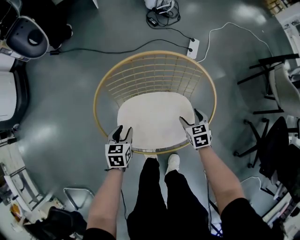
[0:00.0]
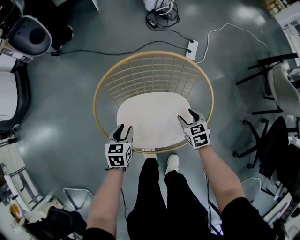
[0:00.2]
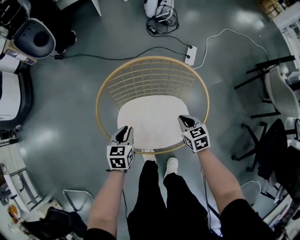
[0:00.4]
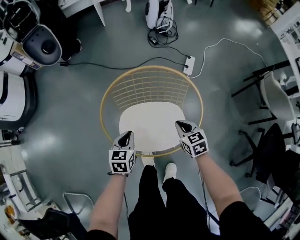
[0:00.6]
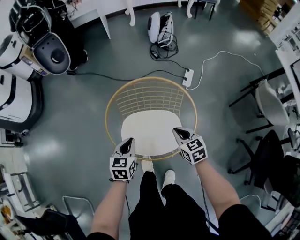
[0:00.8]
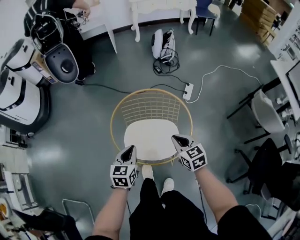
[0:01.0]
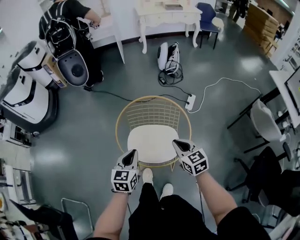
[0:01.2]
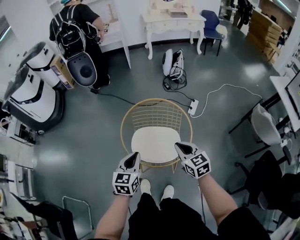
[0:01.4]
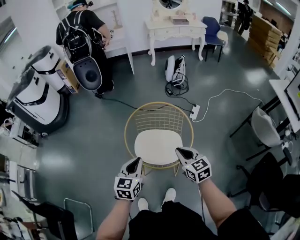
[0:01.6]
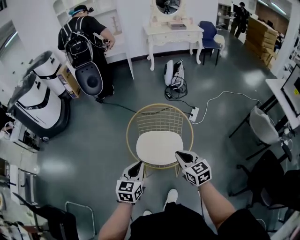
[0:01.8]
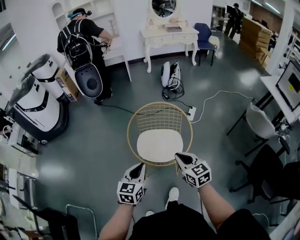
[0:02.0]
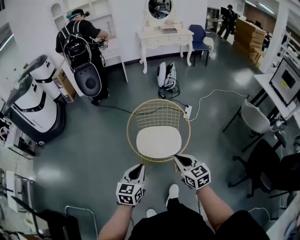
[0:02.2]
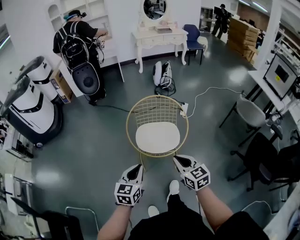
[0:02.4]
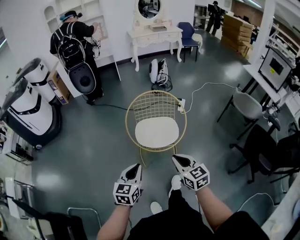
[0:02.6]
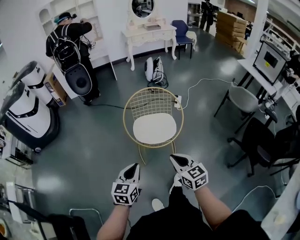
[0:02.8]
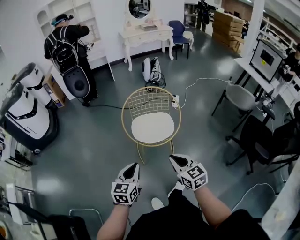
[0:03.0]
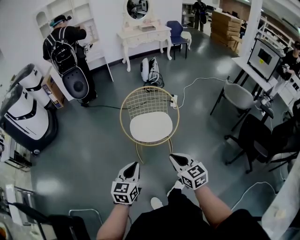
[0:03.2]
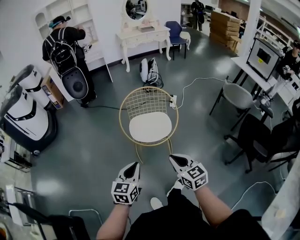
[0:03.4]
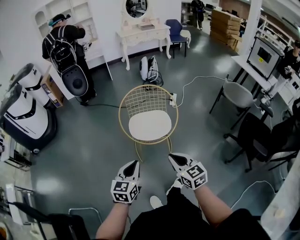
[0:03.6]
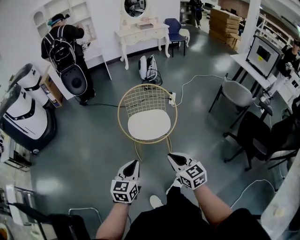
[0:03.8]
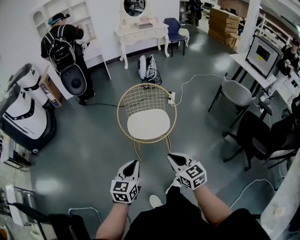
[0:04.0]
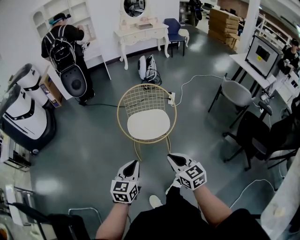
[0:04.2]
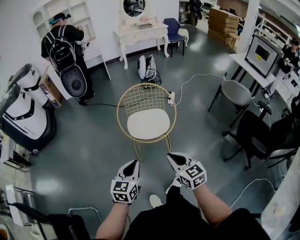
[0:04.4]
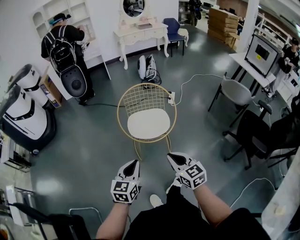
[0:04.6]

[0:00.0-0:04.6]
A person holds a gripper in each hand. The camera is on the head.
0.0 to 1.6 s: The two grippers go some 40 cm upward and backward. The right gripper rotates some 40 degrees, and closes its fingers; the left gripper changes its angle by roughly 30 degrees, and closes its fingers.
1.6 to 3.0 s: The grippers both shift backward and to the left by approximately 30 cm.
3.0 to 4.6 s: There are only small adjustments of the grippers.

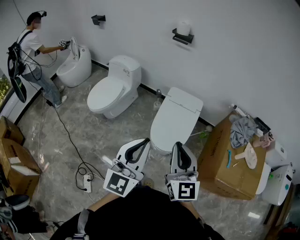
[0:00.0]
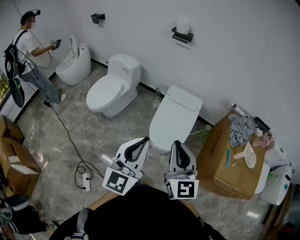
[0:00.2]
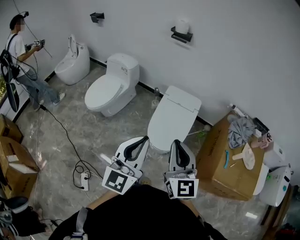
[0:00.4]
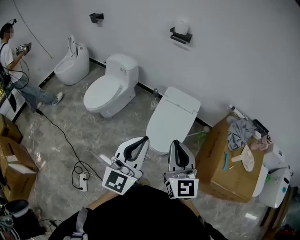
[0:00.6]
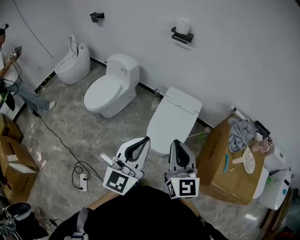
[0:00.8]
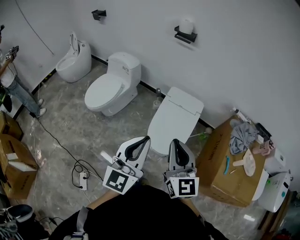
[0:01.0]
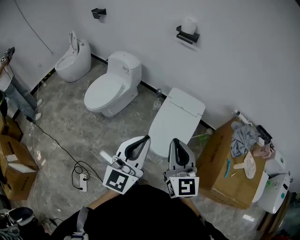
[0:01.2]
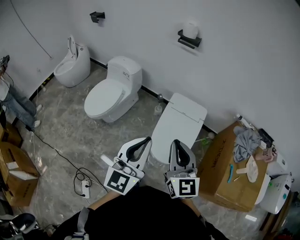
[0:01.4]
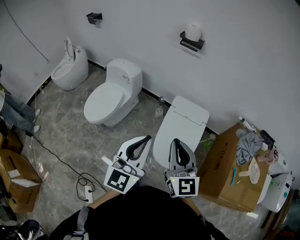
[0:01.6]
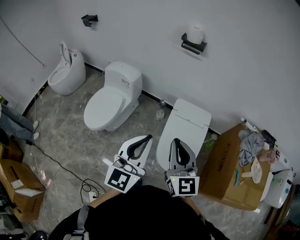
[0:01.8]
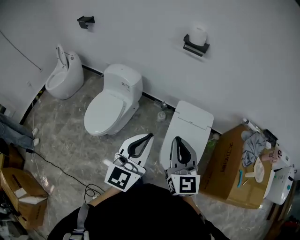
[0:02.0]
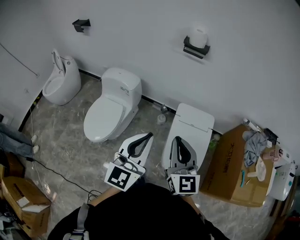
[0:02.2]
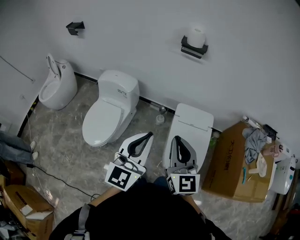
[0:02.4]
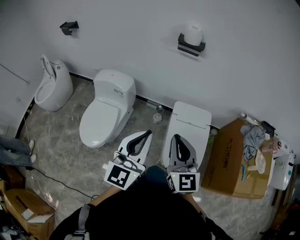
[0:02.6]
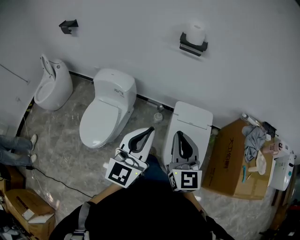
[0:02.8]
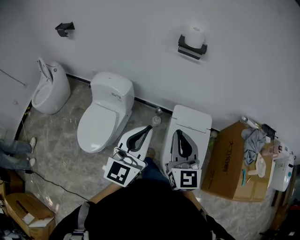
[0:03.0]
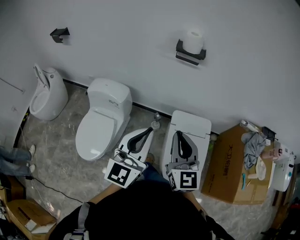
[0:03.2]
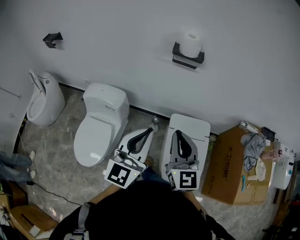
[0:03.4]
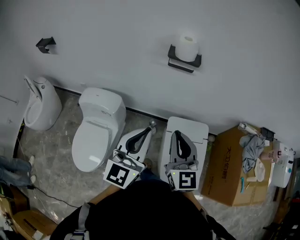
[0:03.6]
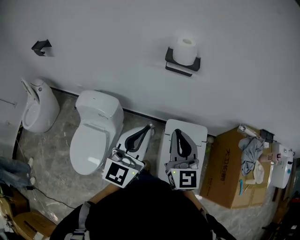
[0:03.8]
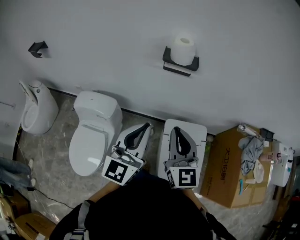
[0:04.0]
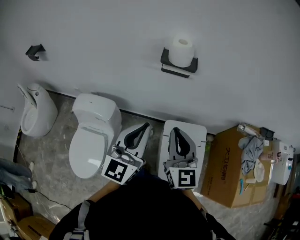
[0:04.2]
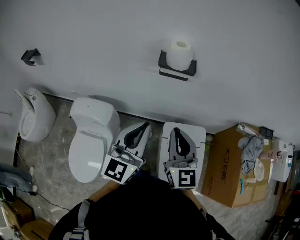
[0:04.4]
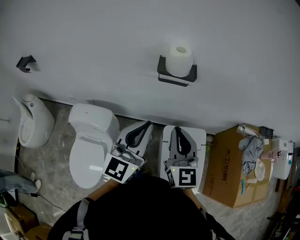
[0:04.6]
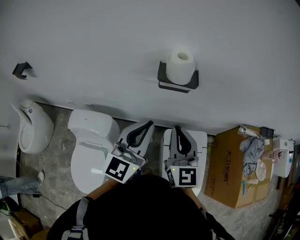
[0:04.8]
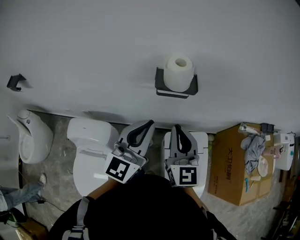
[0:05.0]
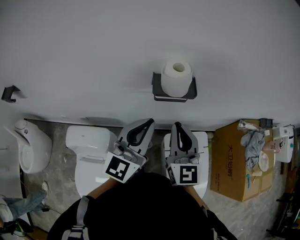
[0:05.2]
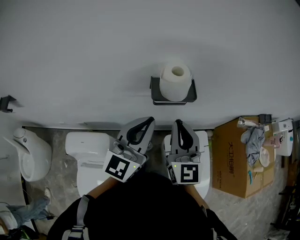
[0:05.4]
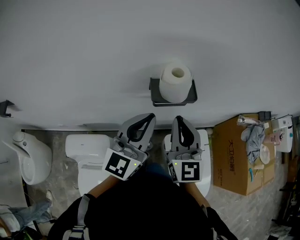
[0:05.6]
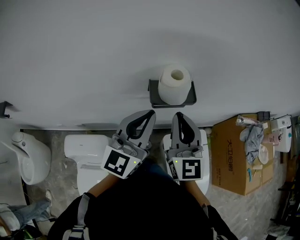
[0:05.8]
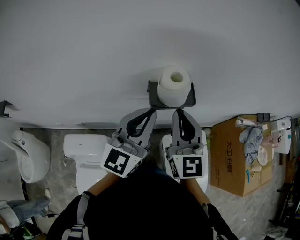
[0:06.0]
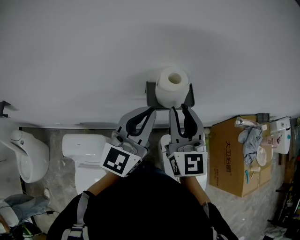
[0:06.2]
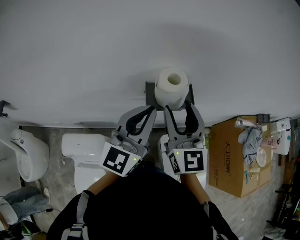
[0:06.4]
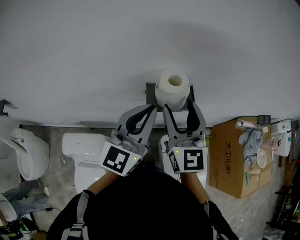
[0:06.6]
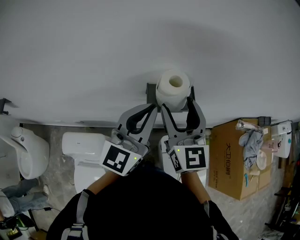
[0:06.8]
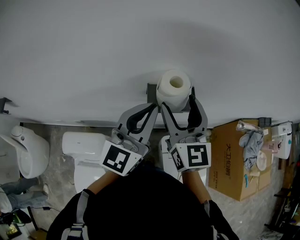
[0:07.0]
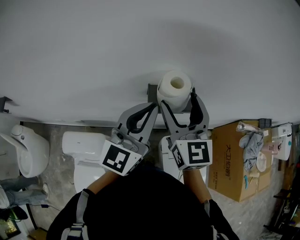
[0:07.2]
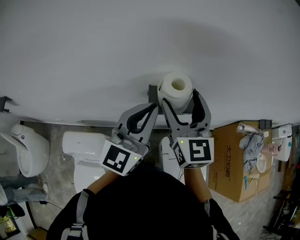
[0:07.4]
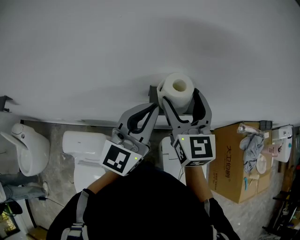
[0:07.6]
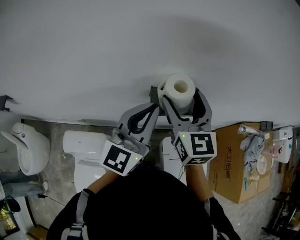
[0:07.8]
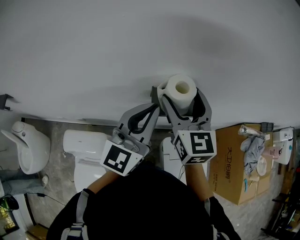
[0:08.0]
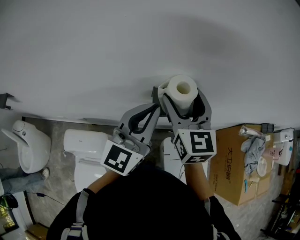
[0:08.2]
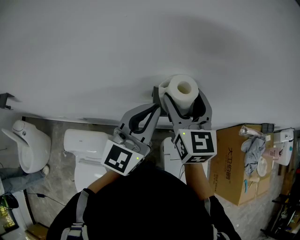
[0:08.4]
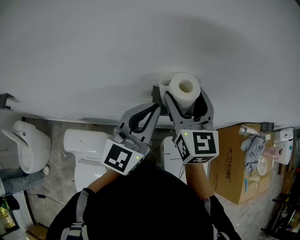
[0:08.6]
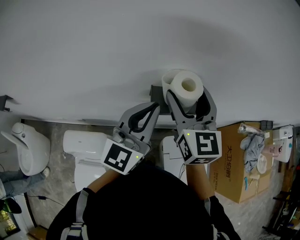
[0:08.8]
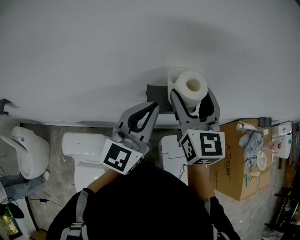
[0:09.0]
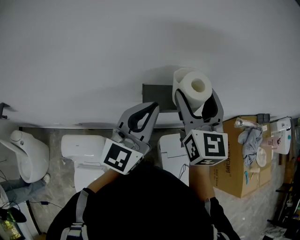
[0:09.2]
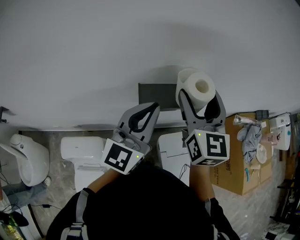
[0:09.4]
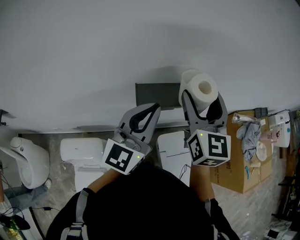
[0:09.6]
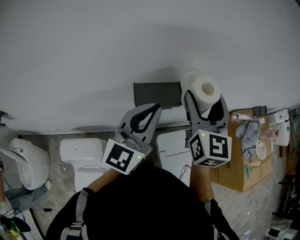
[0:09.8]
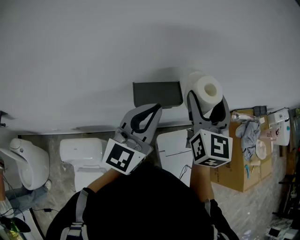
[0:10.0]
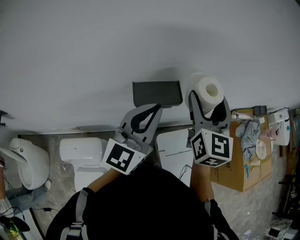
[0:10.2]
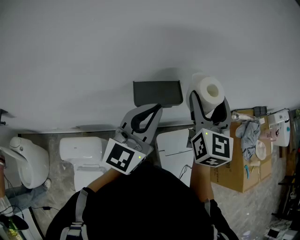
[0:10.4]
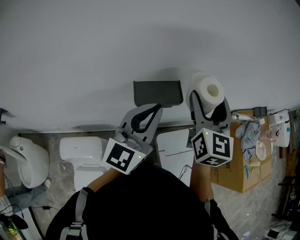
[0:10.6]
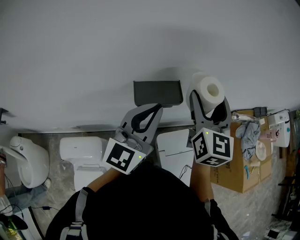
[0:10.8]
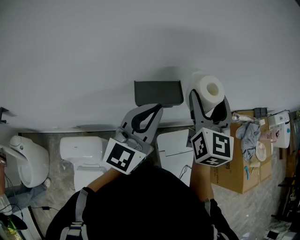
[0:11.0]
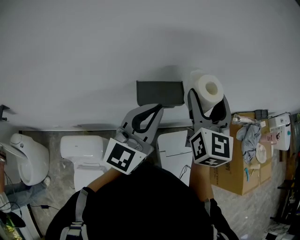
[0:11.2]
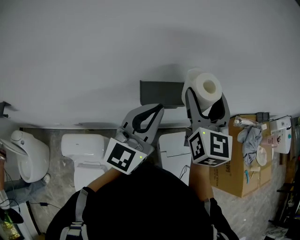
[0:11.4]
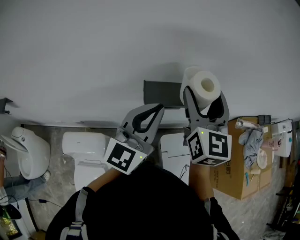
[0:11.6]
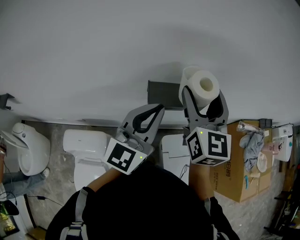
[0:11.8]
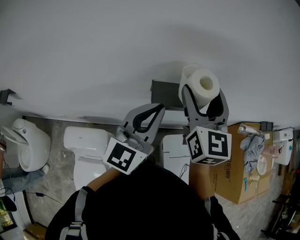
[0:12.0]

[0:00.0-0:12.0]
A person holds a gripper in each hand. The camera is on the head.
0.0 to 1.6 s: The right gripper travels forward and to the left by some 20 cm, while the left gripper heads forward, covering roughly 20 cm.
1.6 to 3.0 s: Both grippers travel together forward and to the left, roughly 25 cm.
3.0 to 4.4 s: The grippers both shift forward by some 25 cm.
4.4 to 6.0 s: The grippers both shift forward by roughly 20 cm.
6.0 to 7.6 s: The right gripper heads forward, covering some 10 cm, and opens.
7.6 to 9.0 s: The grippers make only small movements.
9.0 to 10.4 s: The right gripper is displaced to the right by roughly 10 cm; the left gripper travels to the right by about 5 cm.
10.4 to 12.0 s: The right gripper shifts about 10 cm to the left.

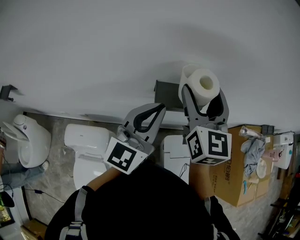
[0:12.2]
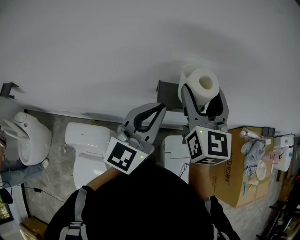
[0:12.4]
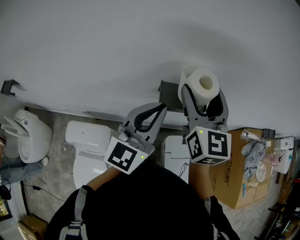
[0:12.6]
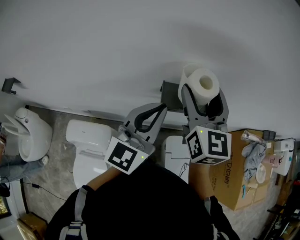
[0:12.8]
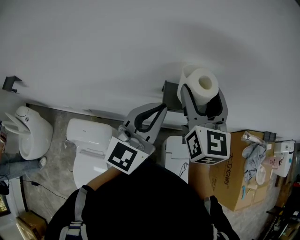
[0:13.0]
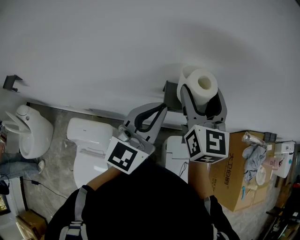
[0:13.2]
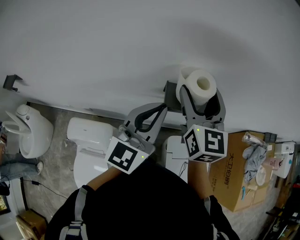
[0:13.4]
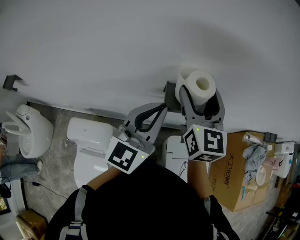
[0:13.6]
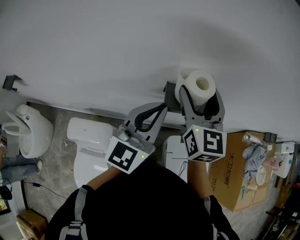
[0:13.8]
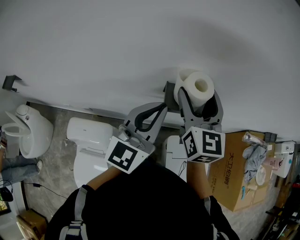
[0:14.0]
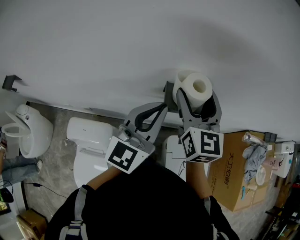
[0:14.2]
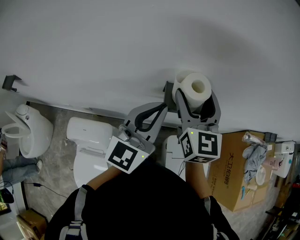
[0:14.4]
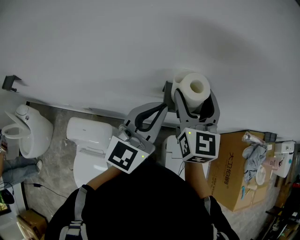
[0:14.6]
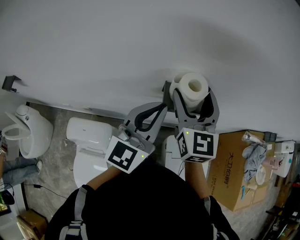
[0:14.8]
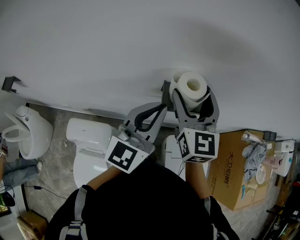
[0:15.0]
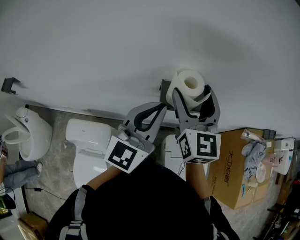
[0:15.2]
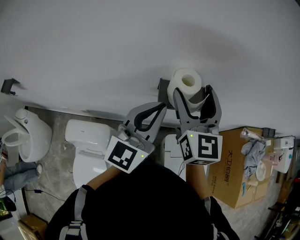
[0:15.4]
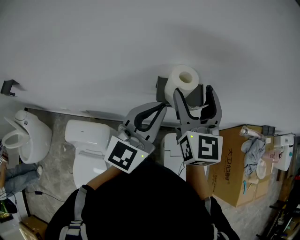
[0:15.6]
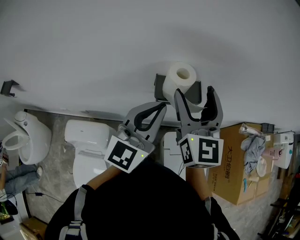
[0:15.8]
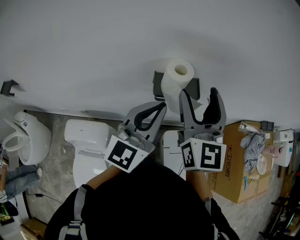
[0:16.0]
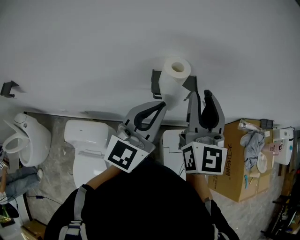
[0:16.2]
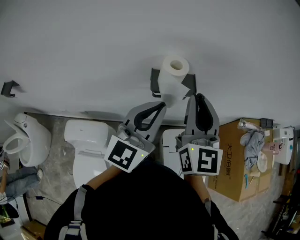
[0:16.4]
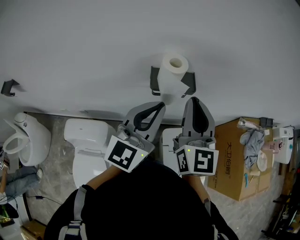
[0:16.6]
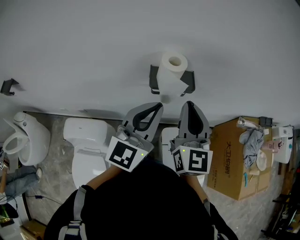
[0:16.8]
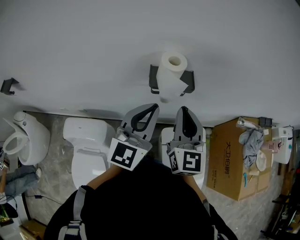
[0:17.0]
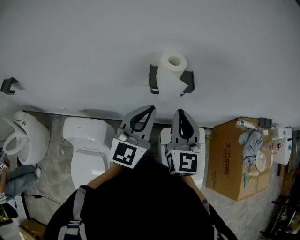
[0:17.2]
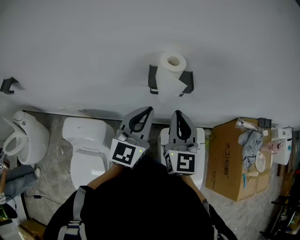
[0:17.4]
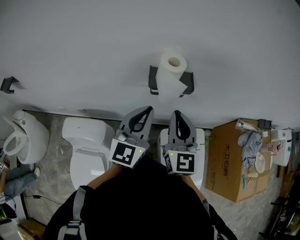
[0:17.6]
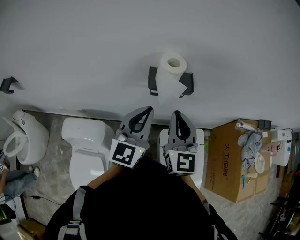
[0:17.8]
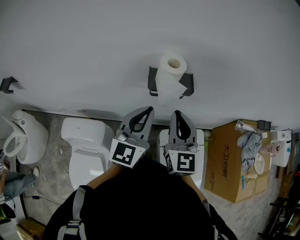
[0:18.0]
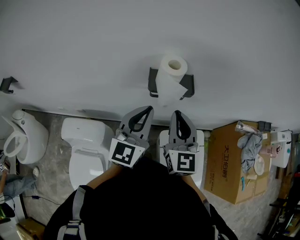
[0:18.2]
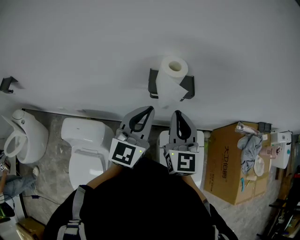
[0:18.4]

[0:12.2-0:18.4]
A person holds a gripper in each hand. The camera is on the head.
12.2 to 13.8 s: The right gripper changes place by some 5 cm.
13.8 to 15.4 s: The grippers stay close to where they were, moving slightly.
15.4 to 16.8 s: The right gripper travels backward and to the right by roughly 10 cm, and closes. Meanwhile the left gripper moves backward, approximately 5 cm.
16.8 to 18.4 s: The right gripper heads downward, covering about 5 cm; the left gripper shifts by approximately 5 cm.

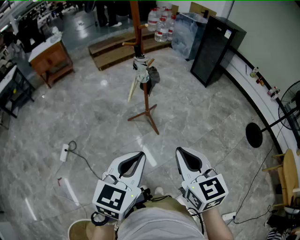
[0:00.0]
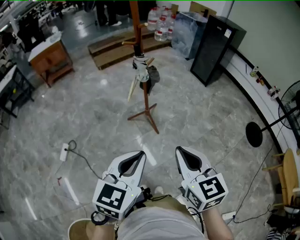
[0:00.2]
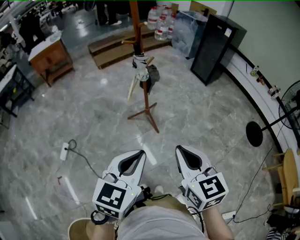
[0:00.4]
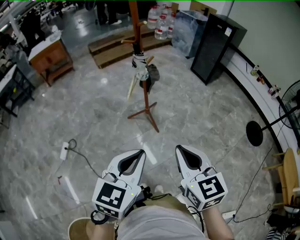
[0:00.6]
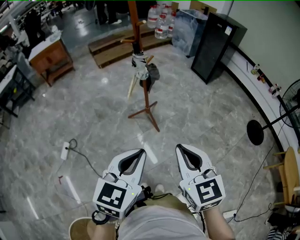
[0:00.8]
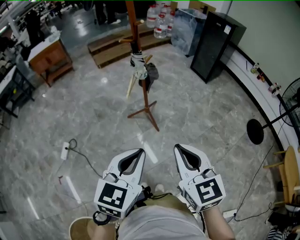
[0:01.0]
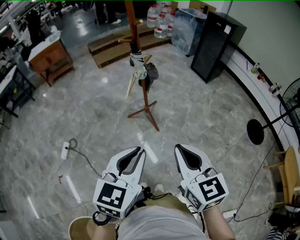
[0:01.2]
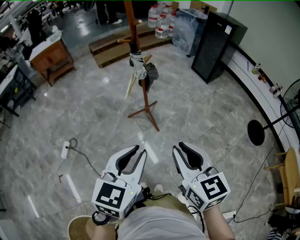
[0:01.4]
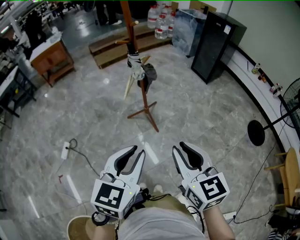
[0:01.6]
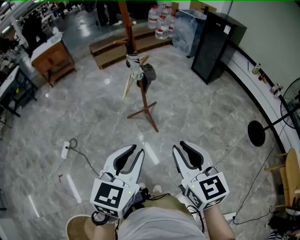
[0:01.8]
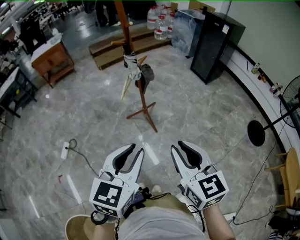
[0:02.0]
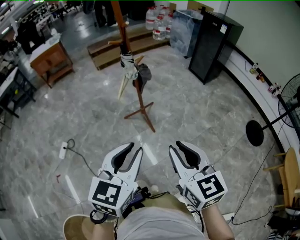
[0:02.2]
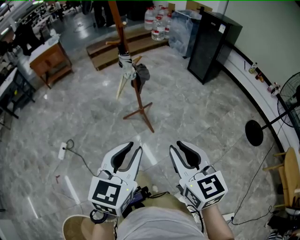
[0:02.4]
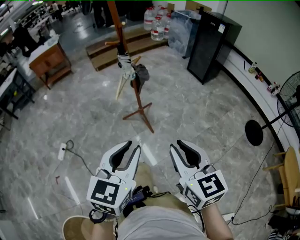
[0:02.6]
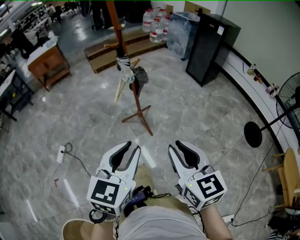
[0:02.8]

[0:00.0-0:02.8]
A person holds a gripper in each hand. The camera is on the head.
0.0 to 1.4 s: The grippers stay close to where they were, moving slightly.
1.4 to 2.8 s: The right gripper shifts about 5 cm to the right.
